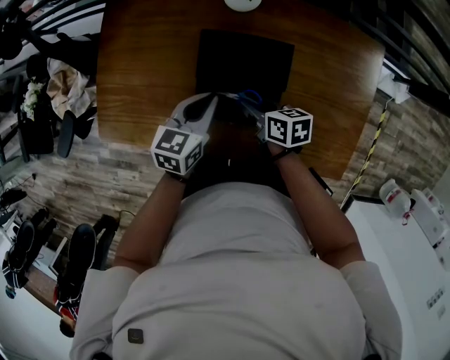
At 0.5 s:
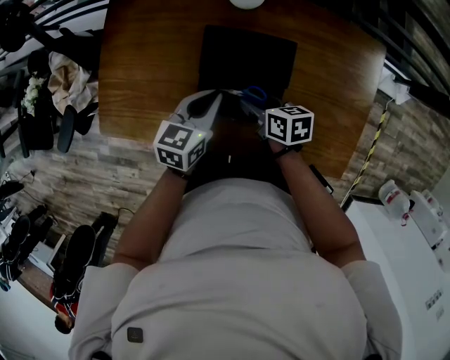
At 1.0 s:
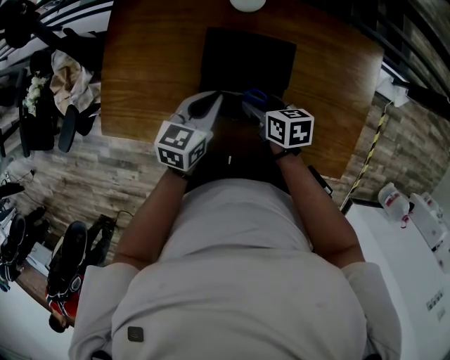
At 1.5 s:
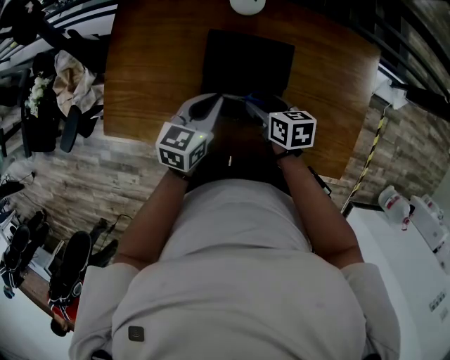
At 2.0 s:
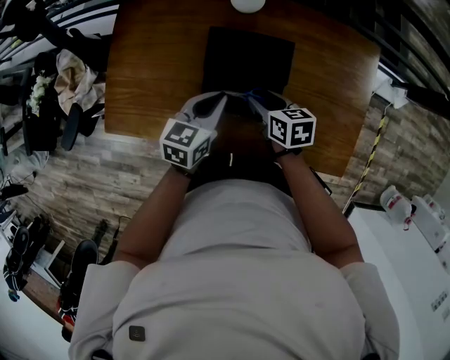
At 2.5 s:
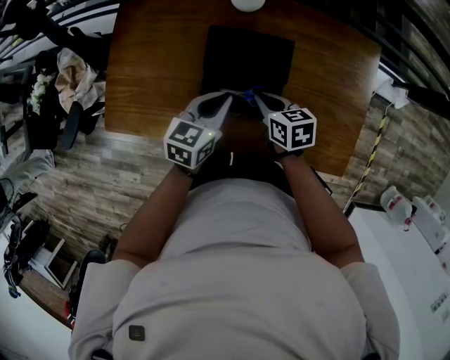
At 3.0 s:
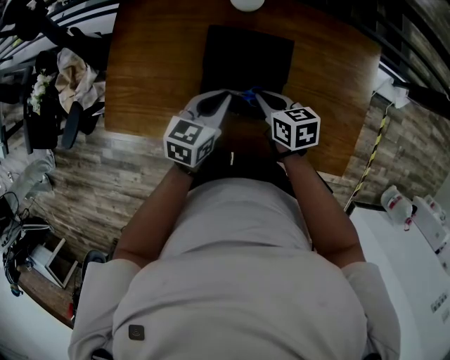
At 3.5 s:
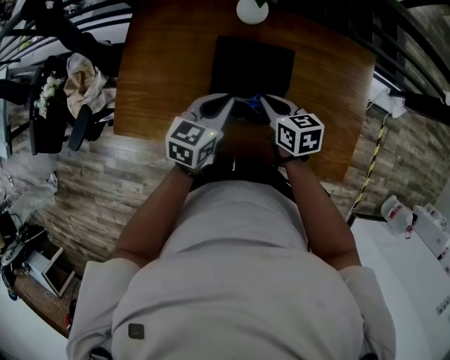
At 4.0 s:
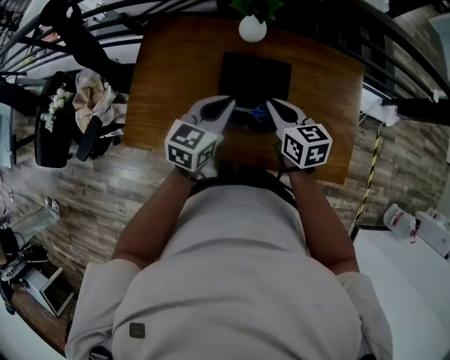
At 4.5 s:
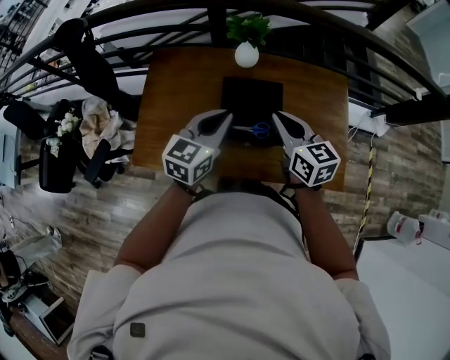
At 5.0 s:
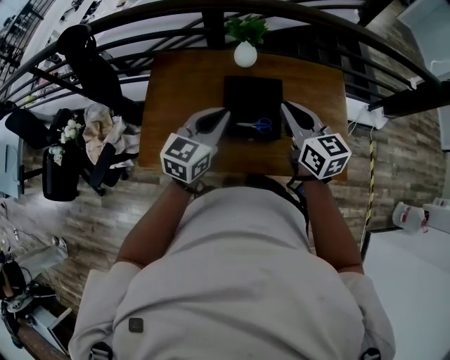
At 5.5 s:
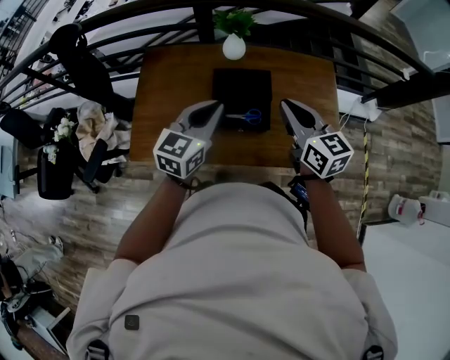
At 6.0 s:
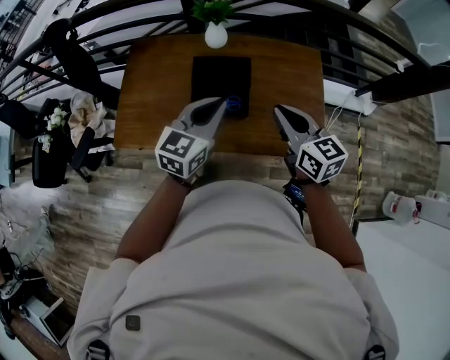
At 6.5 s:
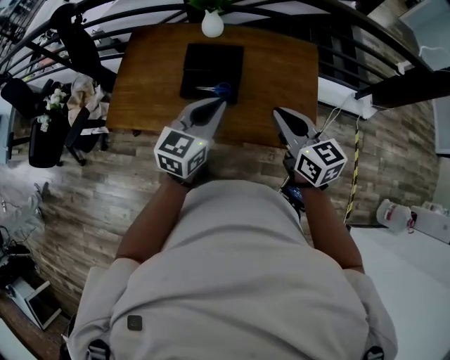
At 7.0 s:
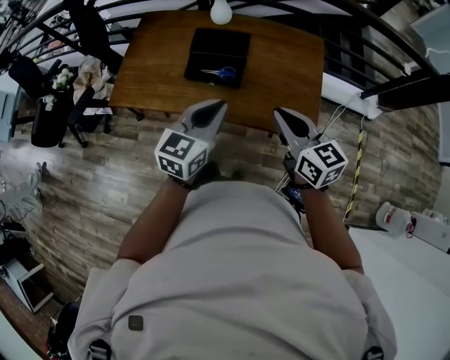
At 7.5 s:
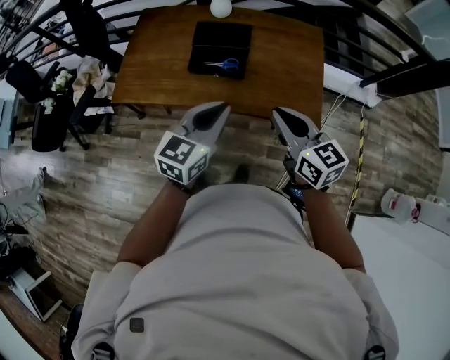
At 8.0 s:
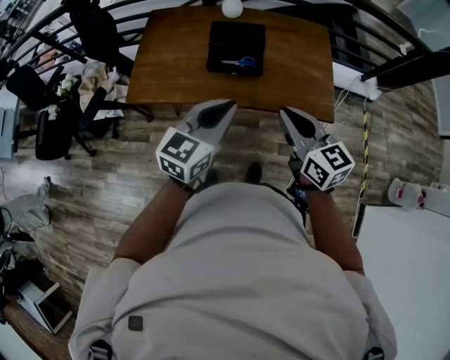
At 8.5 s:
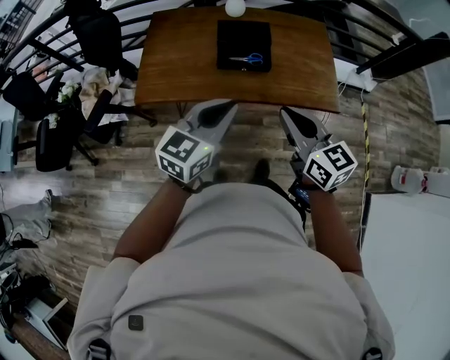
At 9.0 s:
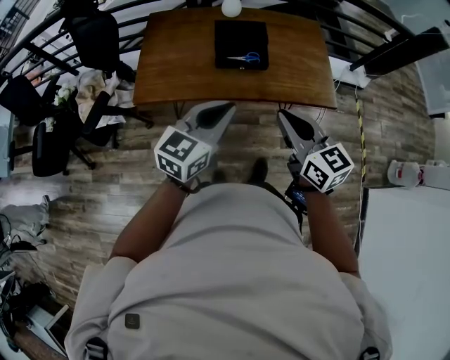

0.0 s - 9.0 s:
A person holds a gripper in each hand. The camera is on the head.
0.0 s - 2.0 s: The right gripper opens, then closes again.
2.0 s - 4.5 s: The grippers both shift upward by some 25 cm. The right gripper changes its angle by about 30 degrees, and closes up. The left gripper turns by some 20 degrees.
4.5 s - 7.0 s: Both grippers travel together backward and to the right, about 30 cm.
7.0 s - 9.0 s: The grippers both shift to the left and backward by some 25 cm.

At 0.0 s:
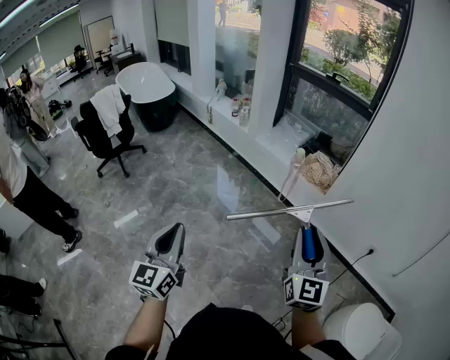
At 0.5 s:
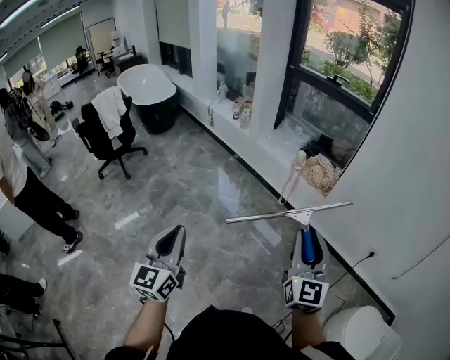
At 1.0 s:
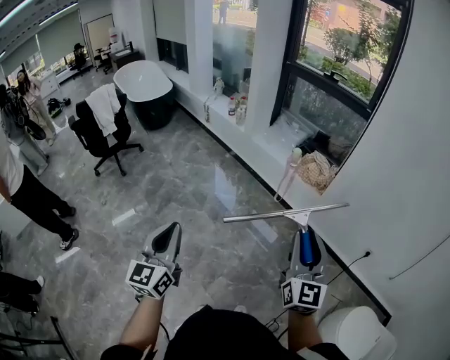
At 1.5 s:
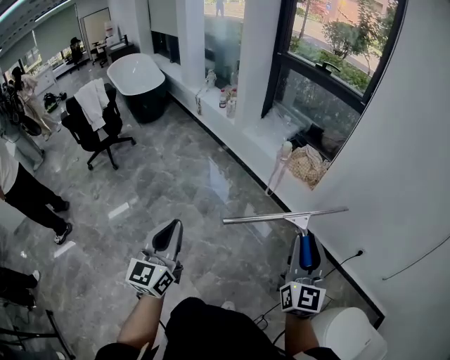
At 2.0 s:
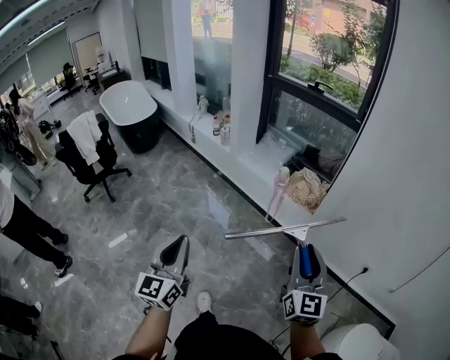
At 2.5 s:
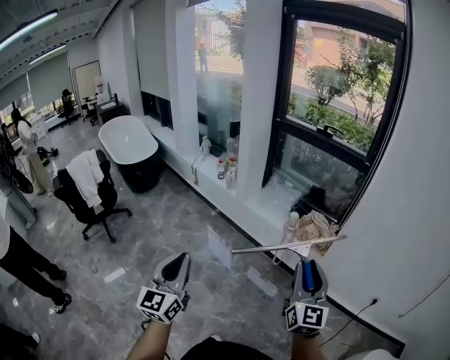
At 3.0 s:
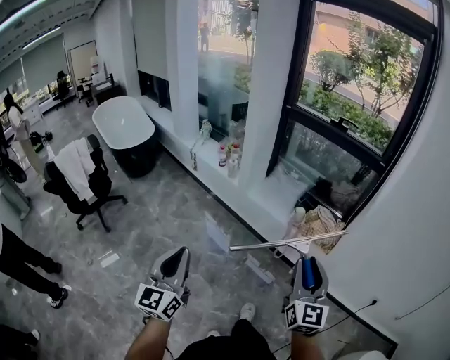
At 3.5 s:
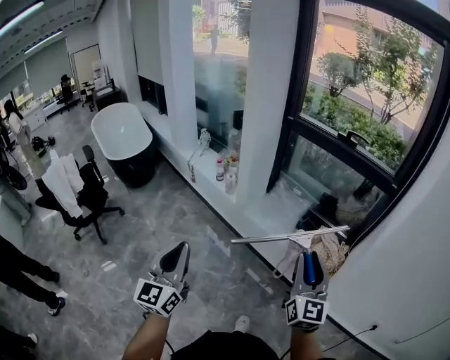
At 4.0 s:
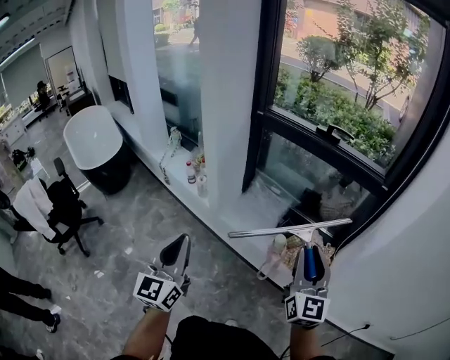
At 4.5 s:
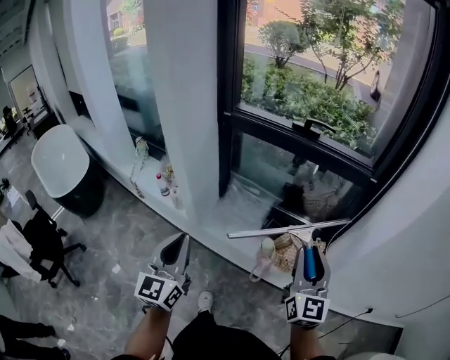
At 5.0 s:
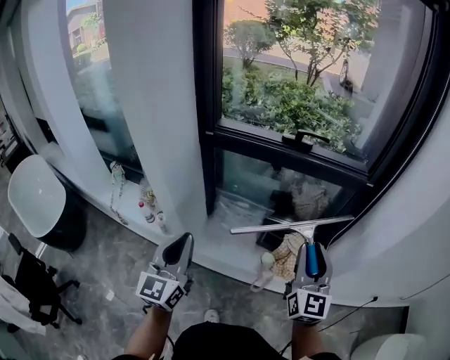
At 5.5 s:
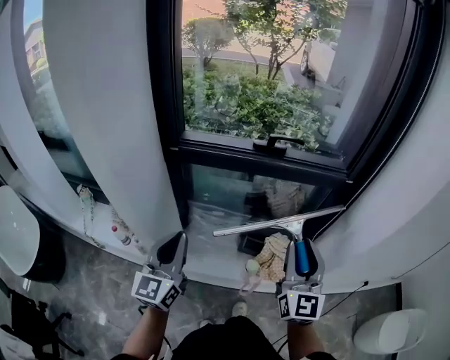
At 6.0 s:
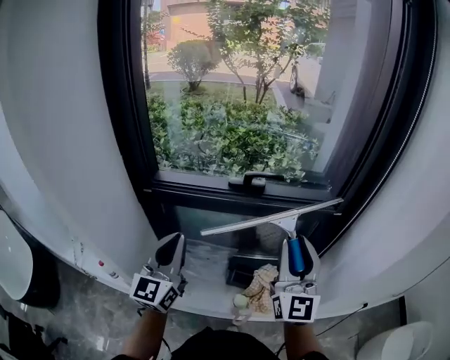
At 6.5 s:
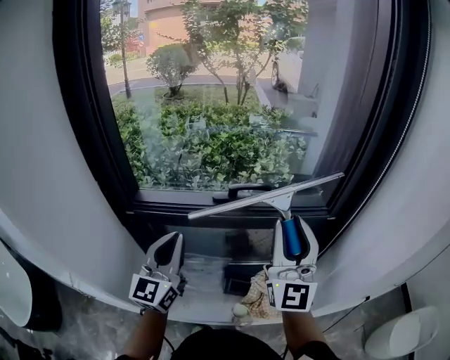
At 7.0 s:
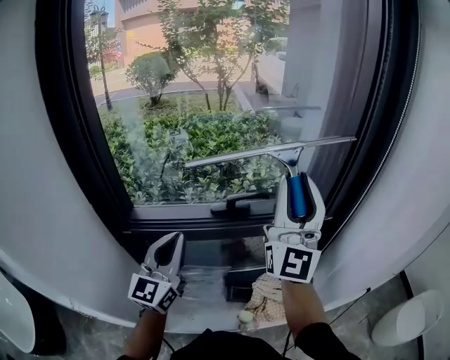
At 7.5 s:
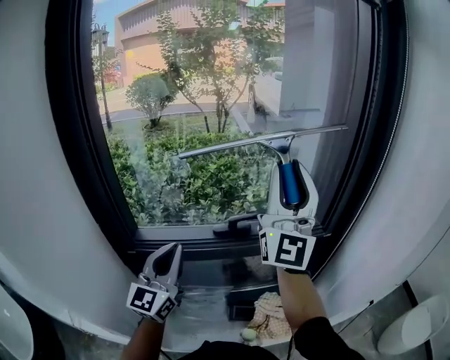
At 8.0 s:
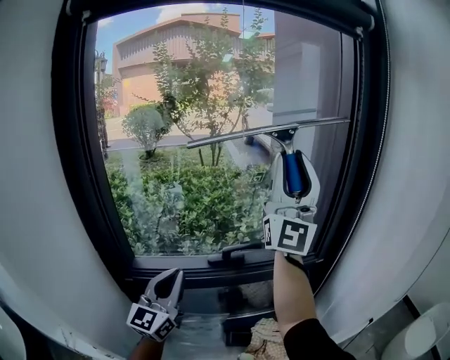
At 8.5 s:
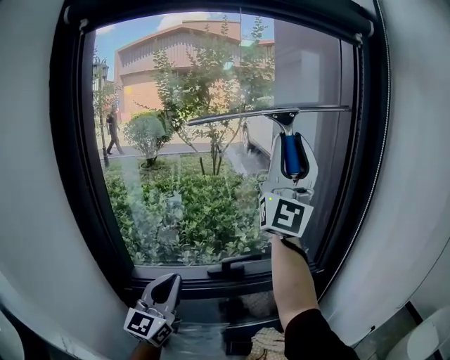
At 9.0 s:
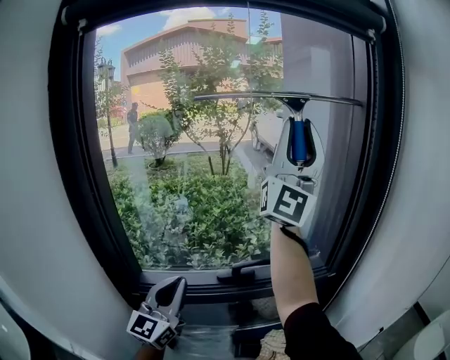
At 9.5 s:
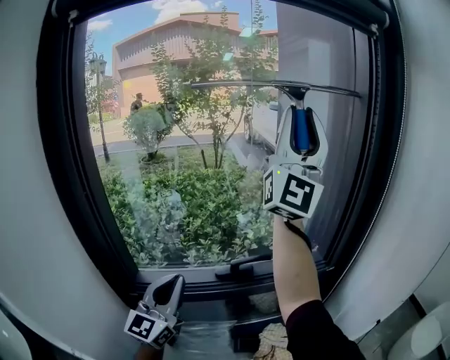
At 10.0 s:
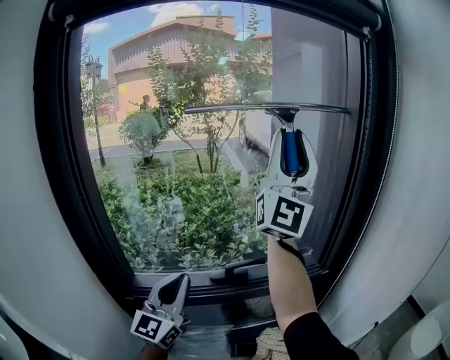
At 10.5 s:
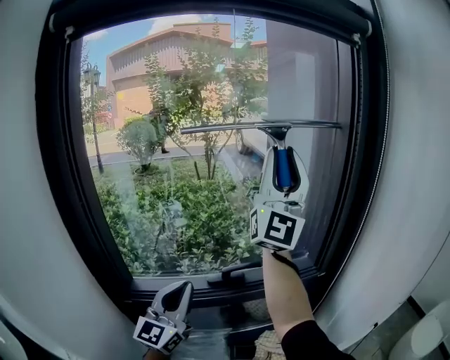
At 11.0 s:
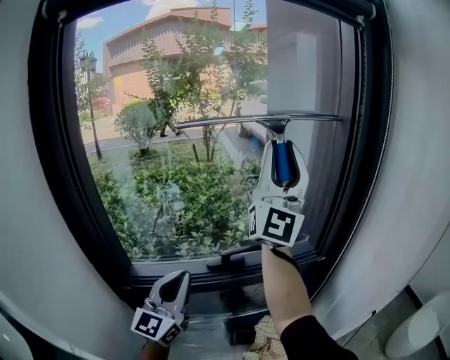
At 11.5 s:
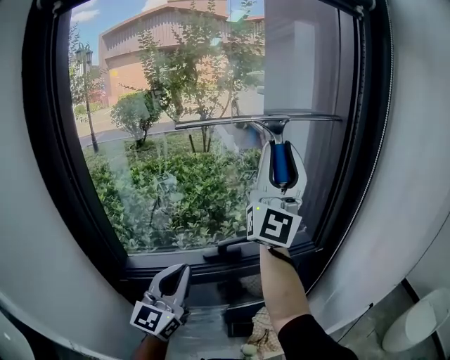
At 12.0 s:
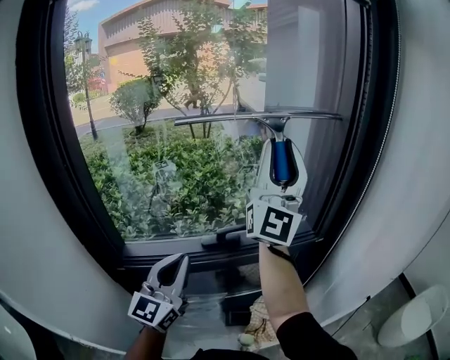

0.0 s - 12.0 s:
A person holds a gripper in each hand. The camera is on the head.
0.0 s - 2.0 s: Both grippers travel together forward and to the right, approximately 15 cm.
2.0 s - 4.0 s: The pair of grippers is taken forward, roughly 50 cm.
4.0 s - 6.0 s: The left gripper moves roughly 50 cm, and rotates about 30 degrees. Meanwhile the right gripper changes place by approximately 30 cm, and changes its angle by approximately 30 degrees.
6.0 s - 8.0 s: The left gripper is displaced forward and upward by about 15 cm, while the right gripper goes approximately 35 cm upward and forward, and angles its fingers upward, by some 40 degrees.
8.0 s - 10.0 s: The right gripper goes about 10 cm upward and forward.
10.0 s - 12.0 s: The right gripper shifts about 10 cm downward.

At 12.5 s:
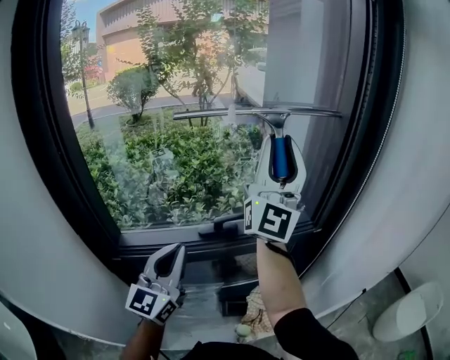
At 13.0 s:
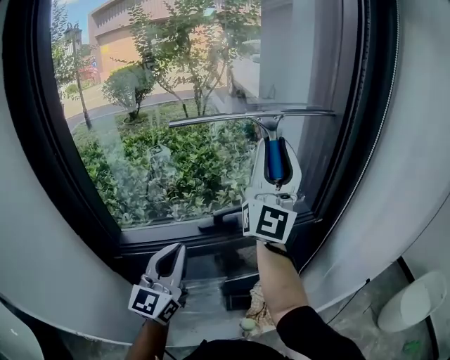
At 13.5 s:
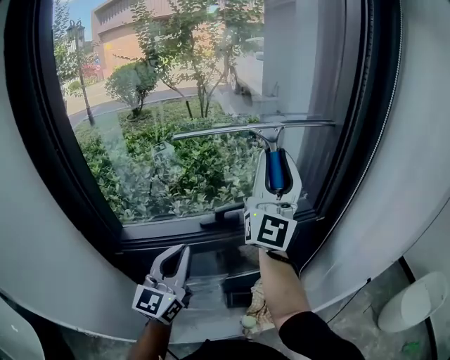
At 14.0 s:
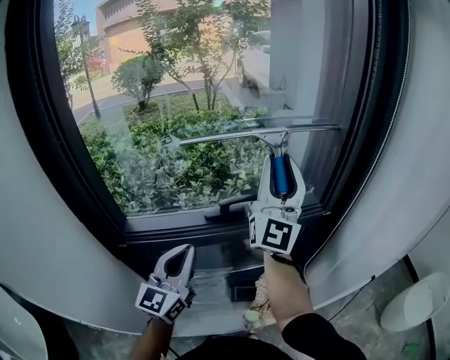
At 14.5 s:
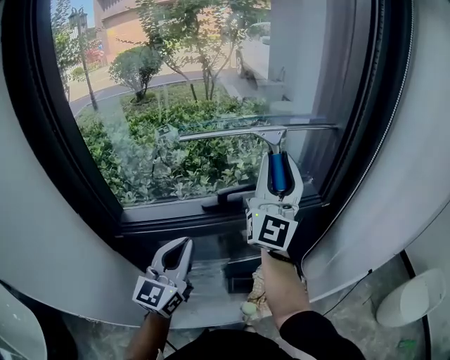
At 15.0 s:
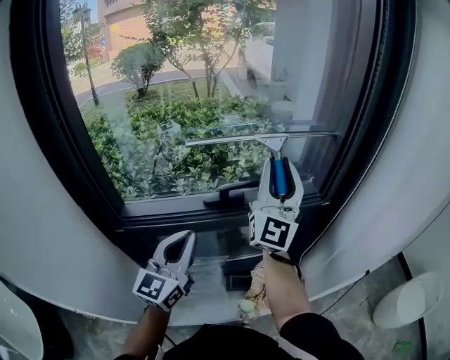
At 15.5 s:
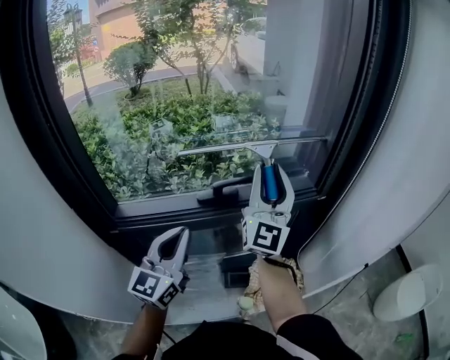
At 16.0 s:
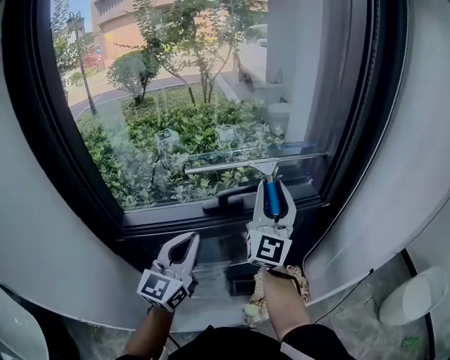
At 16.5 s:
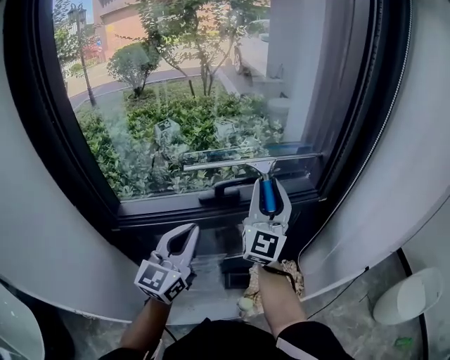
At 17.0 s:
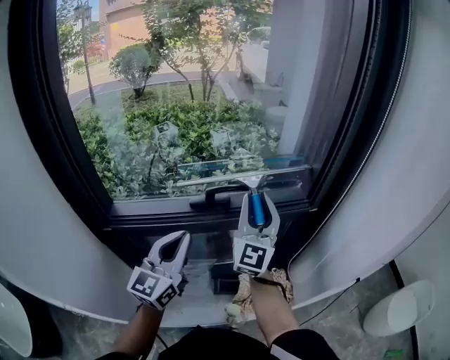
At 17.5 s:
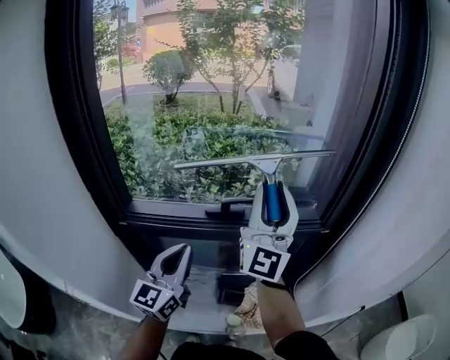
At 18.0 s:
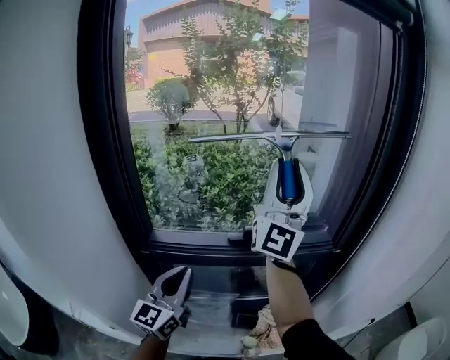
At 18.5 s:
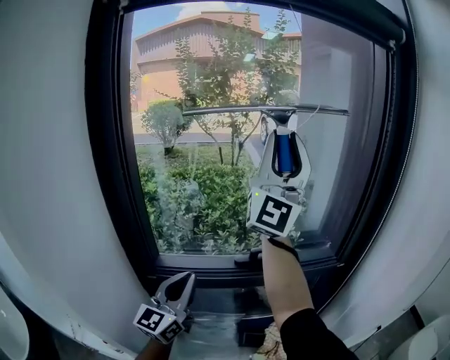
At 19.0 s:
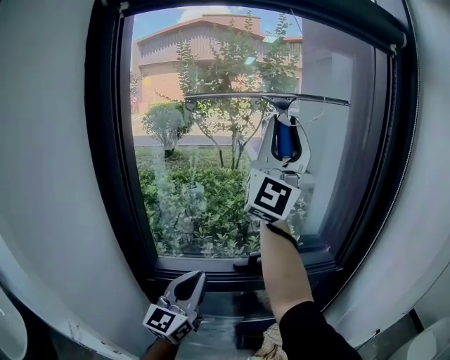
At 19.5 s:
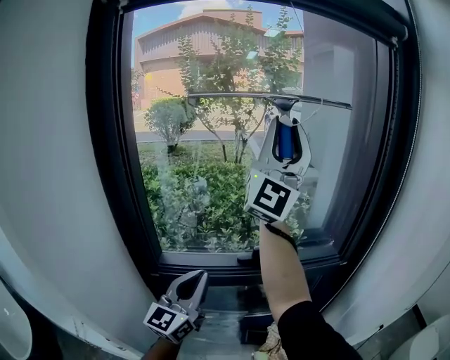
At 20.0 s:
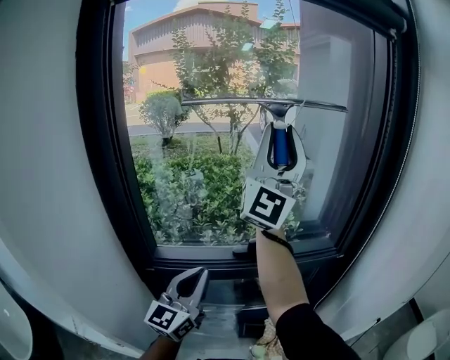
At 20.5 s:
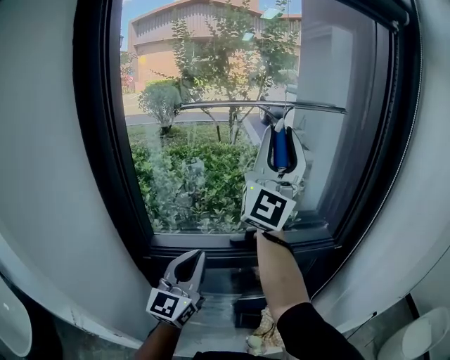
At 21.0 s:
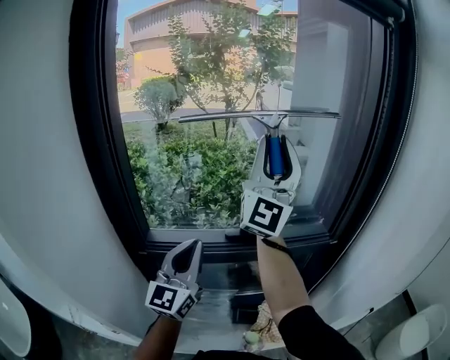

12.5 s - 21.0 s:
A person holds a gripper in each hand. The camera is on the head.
12.5 s - 14.5 s: The left gripper moves downward, approximately 5 cm. The right gripper heads downward, covering roughly 10 cm.
14.5 s - 16.5 s: The right gripper travels downward by approximately 10 cm.
16.5 s - 19.0 s: The right gripper moves upward, about 35 cm, and angles its fingers upward, by about 40 degrees, while the left gripper heads to the left and upward, covering roughly 10 cm.
19.0 s - 21.0 s: The right gripper shifts some 10 cm downward.
